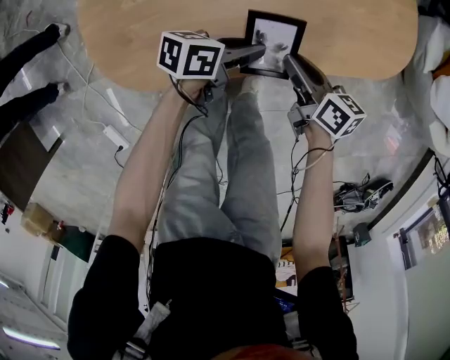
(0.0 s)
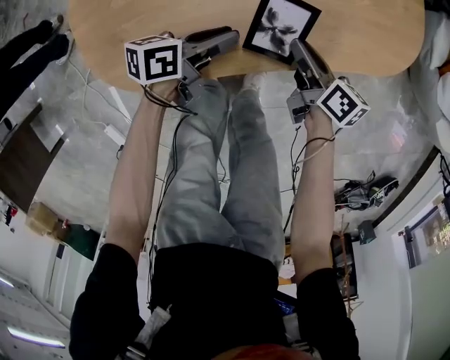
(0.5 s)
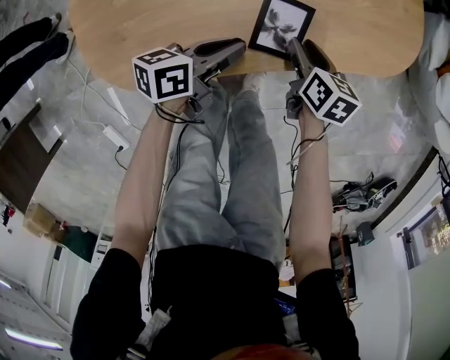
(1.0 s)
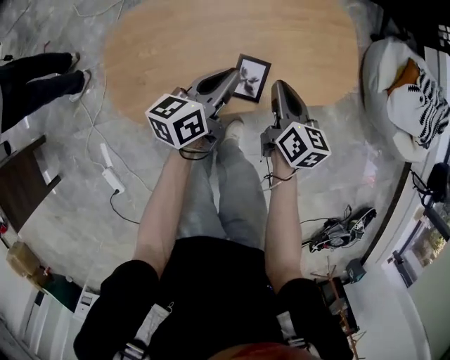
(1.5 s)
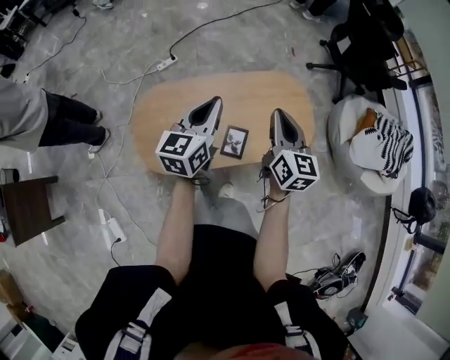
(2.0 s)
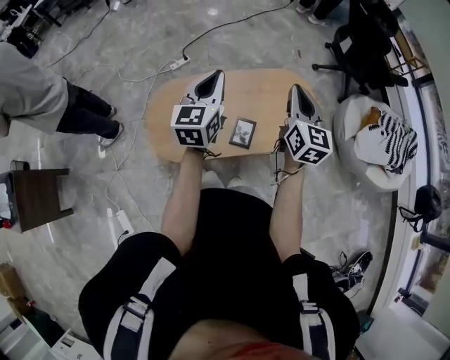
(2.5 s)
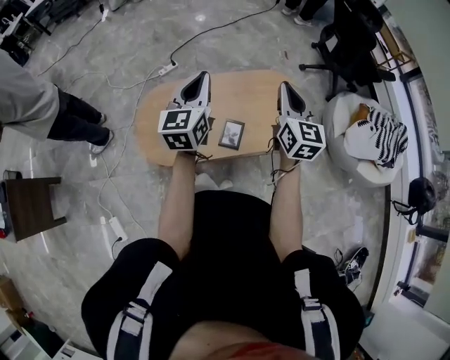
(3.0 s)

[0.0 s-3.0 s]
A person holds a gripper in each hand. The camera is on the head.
0.0 to 1.5 s: Both grippers move upward, roughly 20 cm. The left gripper changes its angle by approximately 30 degrees. Meanwhile the right gripper rotates about 30 degrees.
1.5 to 3.0 s: The grippers both shift upward by about 35 cm. The left gripper rotates roughly 40 degrees, while the right gripper rotates roughly 40 degrees.

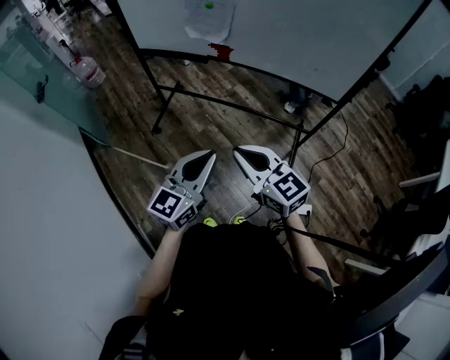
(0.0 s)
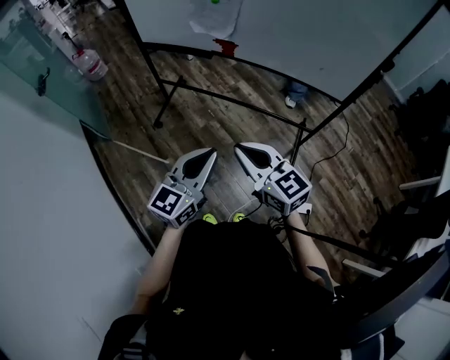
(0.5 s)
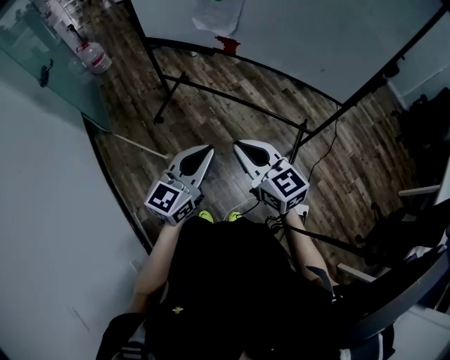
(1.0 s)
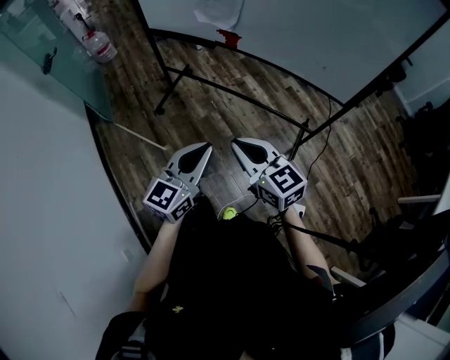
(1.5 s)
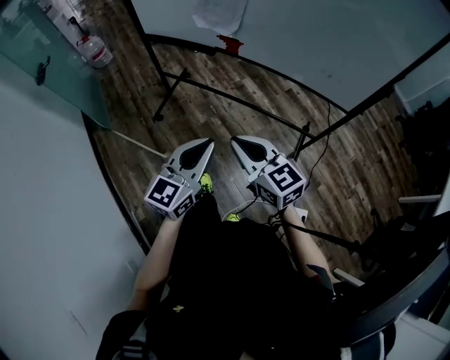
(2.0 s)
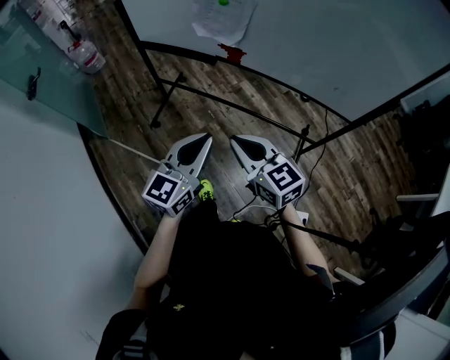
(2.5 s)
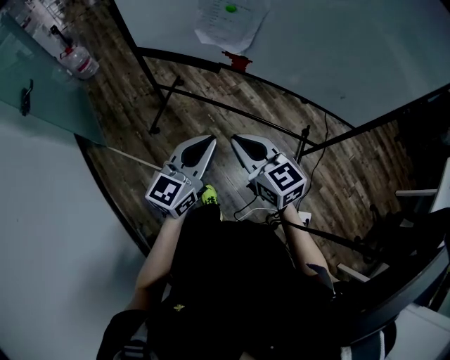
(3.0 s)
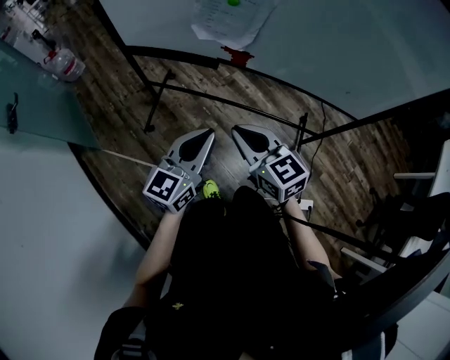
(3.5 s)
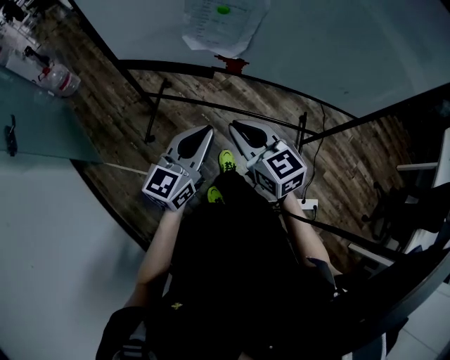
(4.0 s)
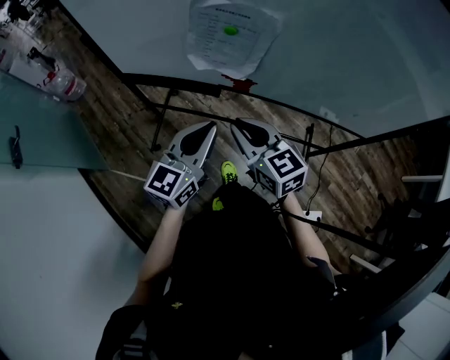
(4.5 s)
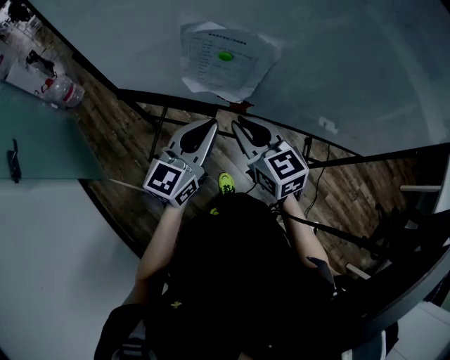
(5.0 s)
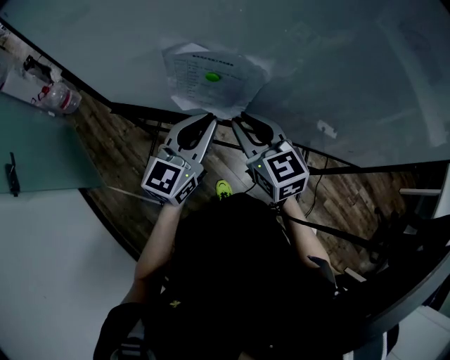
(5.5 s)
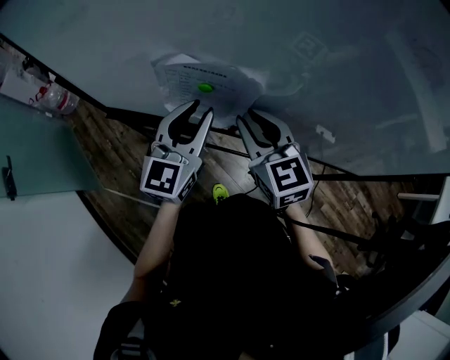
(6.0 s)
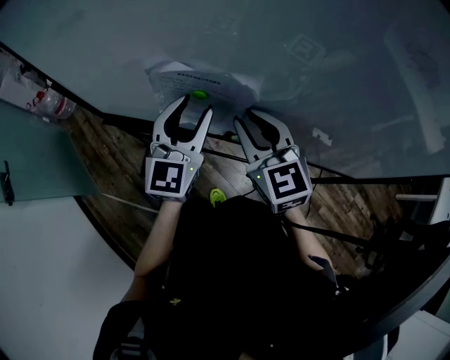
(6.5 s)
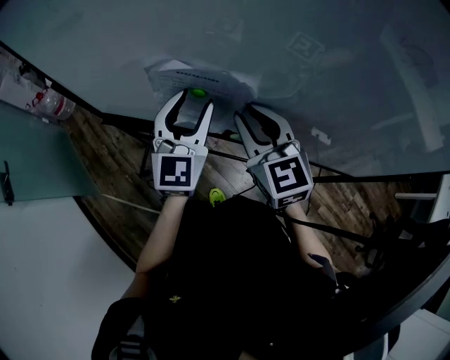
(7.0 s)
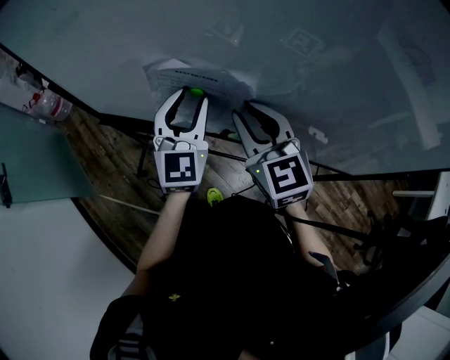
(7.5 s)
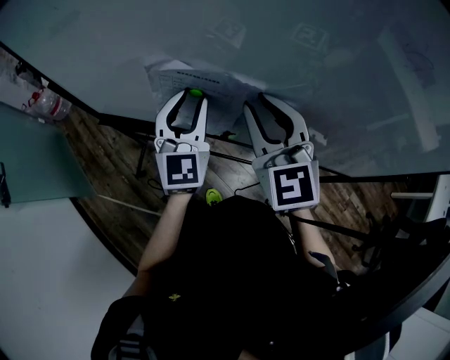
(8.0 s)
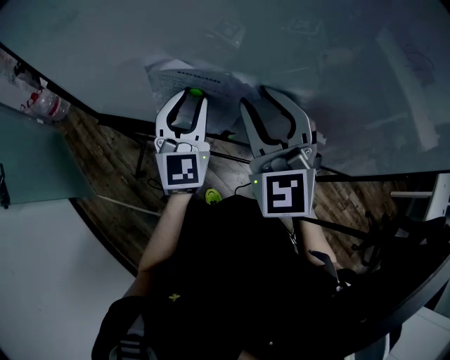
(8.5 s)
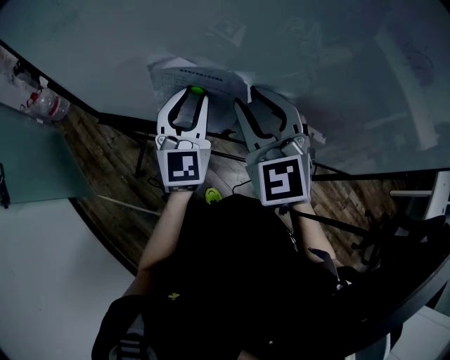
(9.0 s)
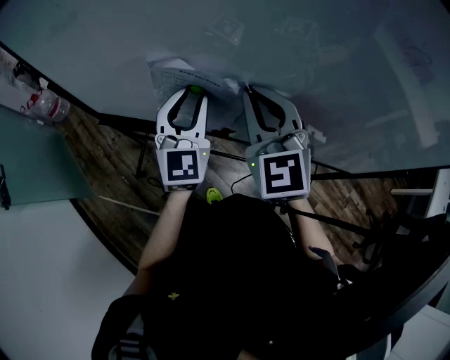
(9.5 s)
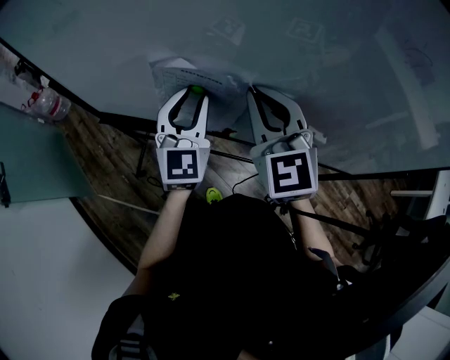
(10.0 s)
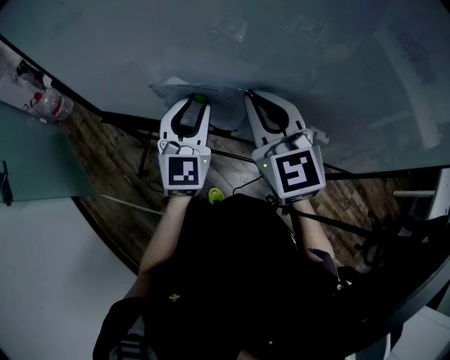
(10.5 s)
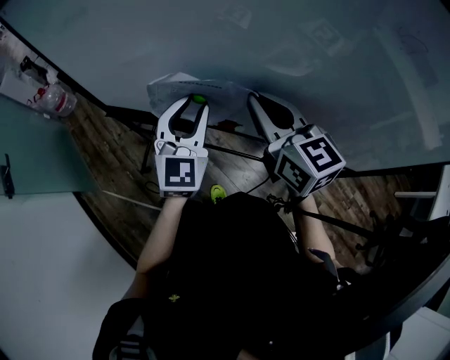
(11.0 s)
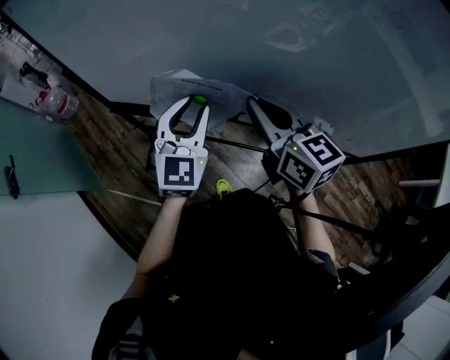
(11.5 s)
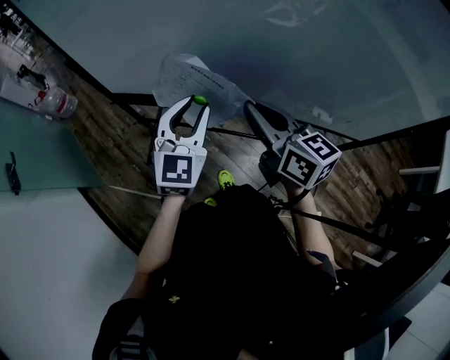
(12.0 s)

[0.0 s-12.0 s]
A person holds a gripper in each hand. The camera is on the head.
0.0 to 2.0 s: The grippers both shift forward by approximately 5 cm.
2.0 to 4.0 s: Both grippers travel together forward, some 20 cm.
4.0 to 6.0 s: The grippers both shift forward by about 25 cm. The left gripper opens.
6.0 to 8.0 s: The right gripper is displaced upward by approximately 10 cm.
8.0 to 10.0 s: The grippers make only small movements.
10.0 to 12.0 s: The grippers both shift backward by roughly 10 cm. The right gripper rotates around the line of its fingers by about 50 degrees, clockwise from behind.

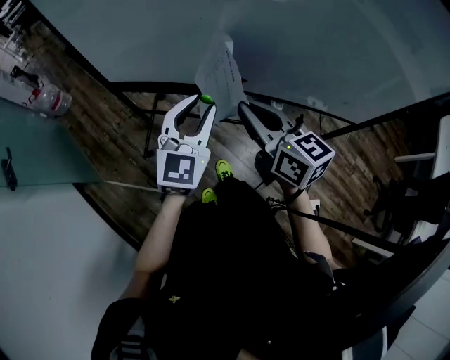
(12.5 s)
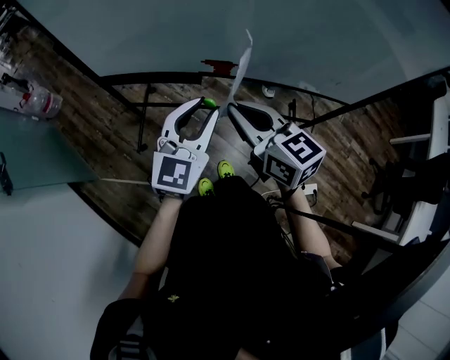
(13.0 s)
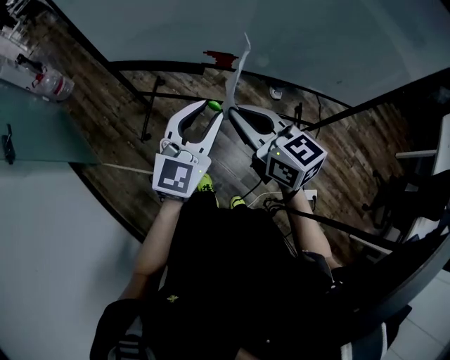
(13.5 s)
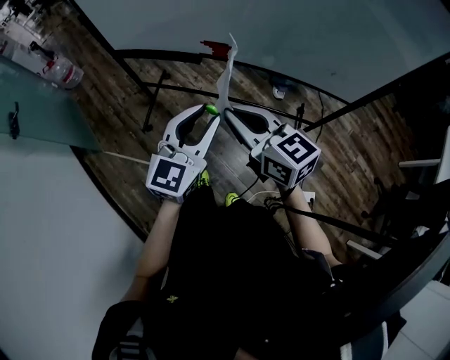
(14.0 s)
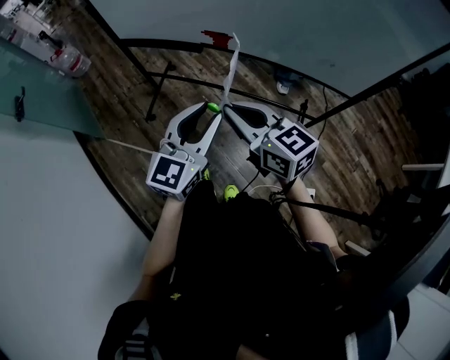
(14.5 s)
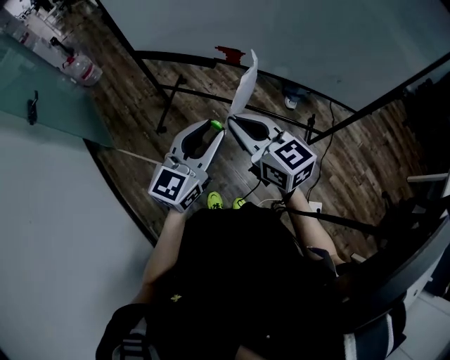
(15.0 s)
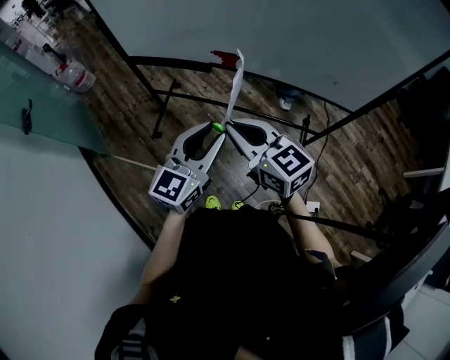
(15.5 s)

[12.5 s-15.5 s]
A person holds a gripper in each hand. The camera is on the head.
12.5 to 14.0 s: The two grippers go approximately 15 cm backward.
14.0 to 15.5 s: The grippers stay close to where they were, moving slightly.

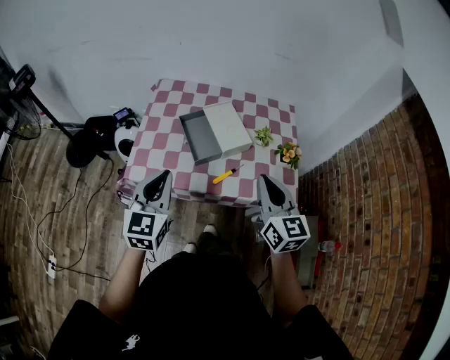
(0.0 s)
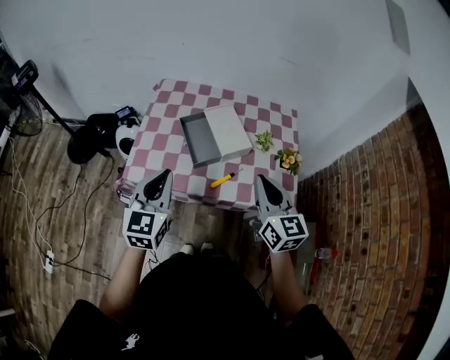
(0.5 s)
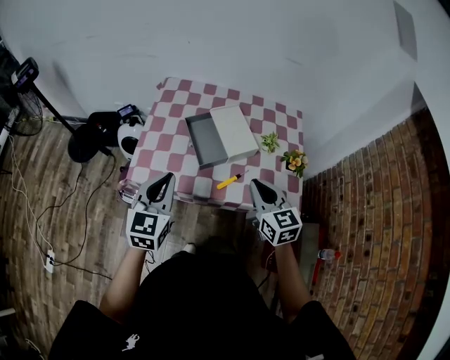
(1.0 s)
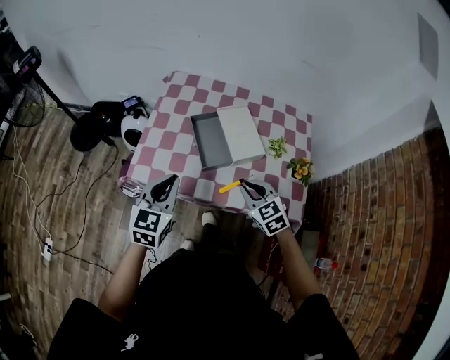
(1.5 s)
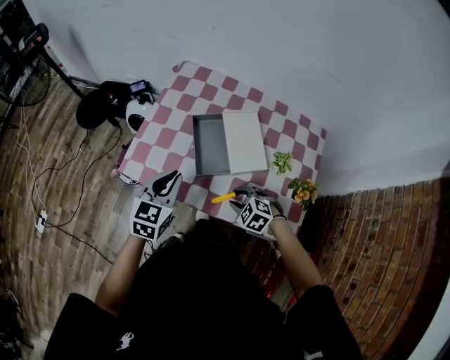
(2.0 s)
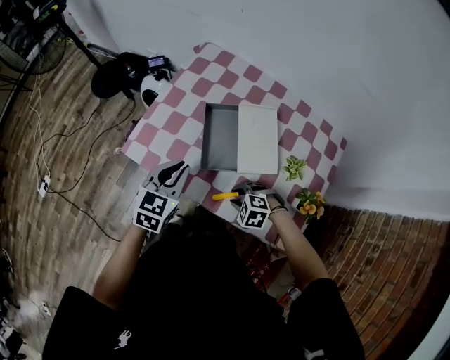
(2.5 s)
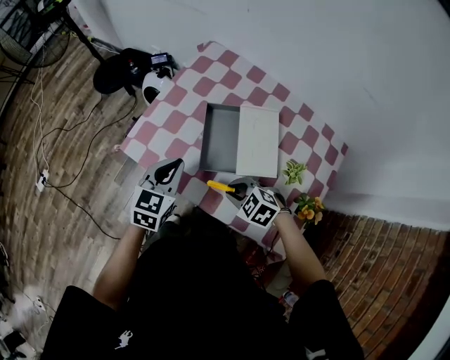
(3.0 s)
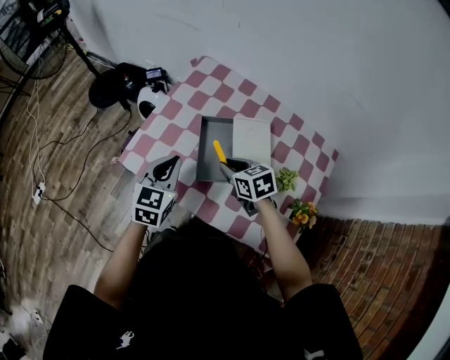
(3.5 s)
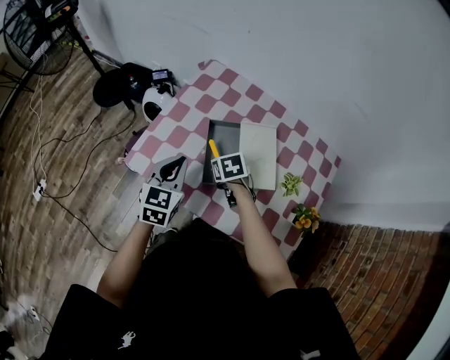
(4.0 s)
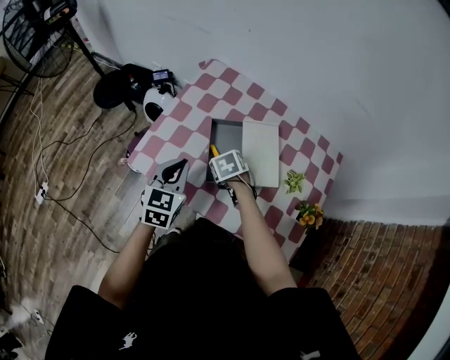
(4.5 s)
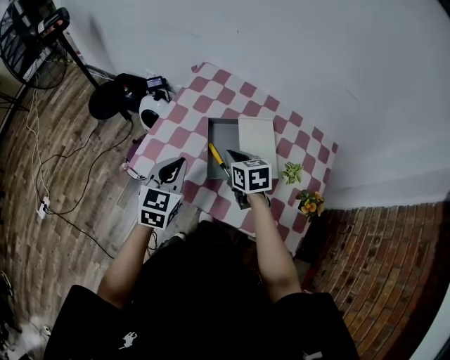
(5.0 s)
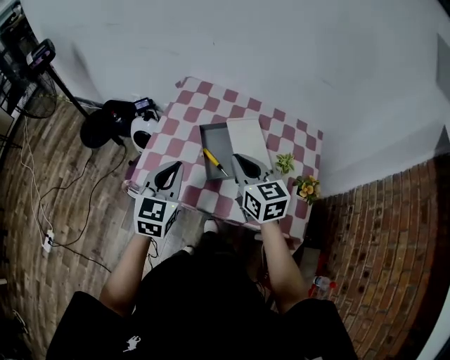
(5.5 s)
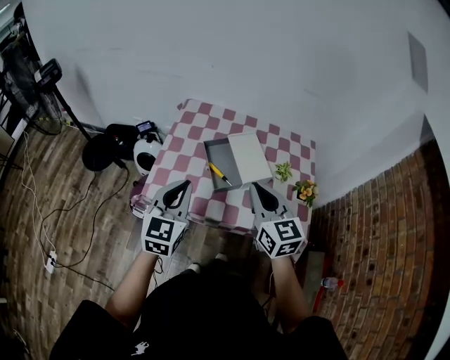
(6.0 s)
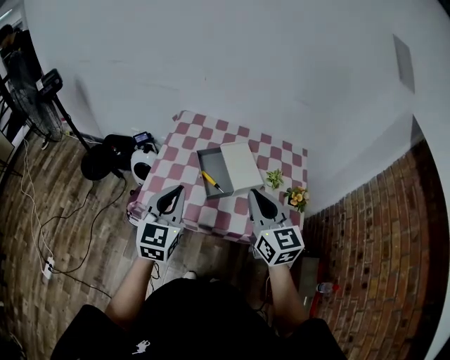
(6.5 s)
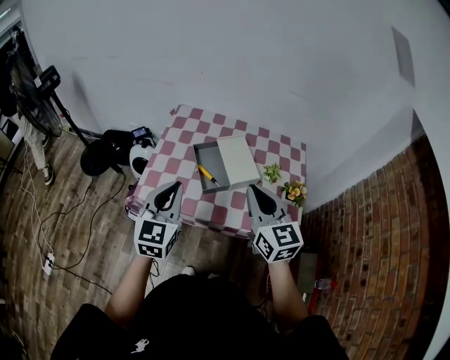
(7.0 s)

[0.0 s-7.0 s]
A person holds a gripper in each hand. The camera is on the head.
0.0 to 2.0 s: The right gripper shifts about 30 cm downward, tips its fingers downward by approximately 60 degrees, and opens up. The left gripper heads downward, covering about 10 cm.
2.0 to 3.5 s: The left gripper shifts some 5 cm forward; the right gripper heads forward and upward, covering about 15 cm, and changes its angle by about 40 degrees.
3.5 to 5.0 s: The right gripper reaches approximately 5 cm downward, then returns.
5.0 to 7.0 s: The left gripper moves upward and backward, roughly 15 cm. The right gripper goes approximately 30 cm upward and backward, and points its fingers approximately 30 degrees further upward.

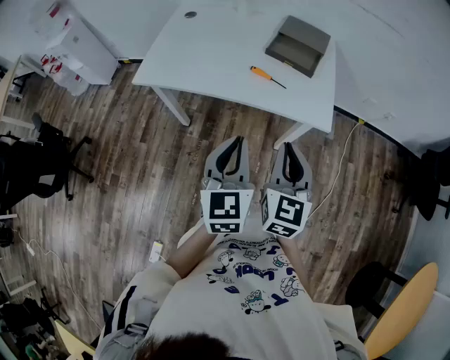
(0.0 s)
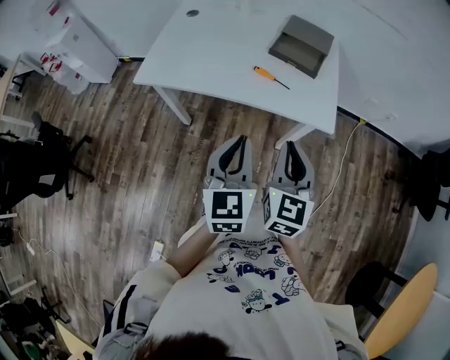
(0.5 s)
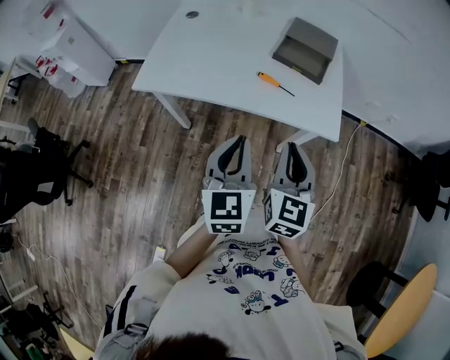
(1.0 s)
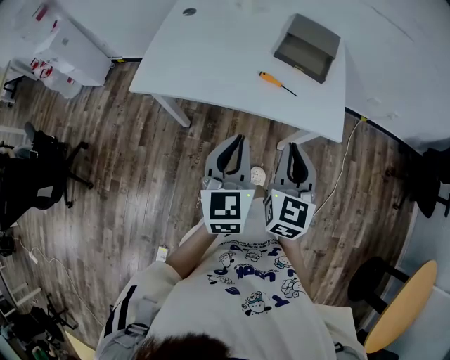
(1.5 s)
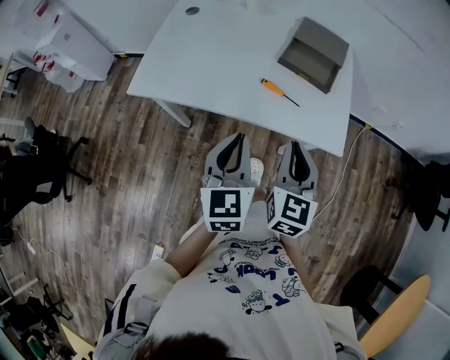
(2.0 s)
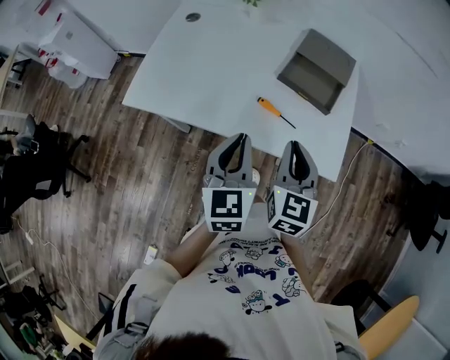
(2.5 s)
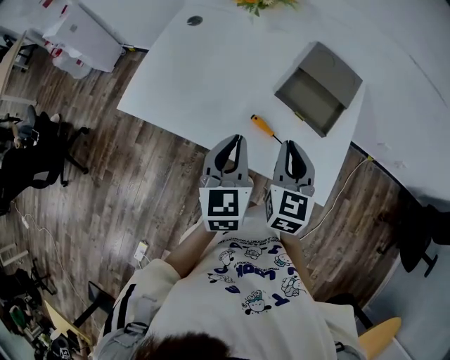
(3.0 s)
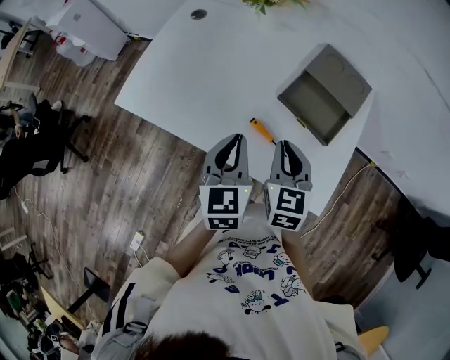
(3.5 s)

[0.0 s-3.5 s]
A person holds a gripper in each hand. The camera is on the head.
0.0 to 2.0 s: The two grippers go roughly 10 cm forward.
2.0 to 3.5 s: Both grippers move forward, approximately 20 cm. The right gripper changes its angle by about 20 degrees.
